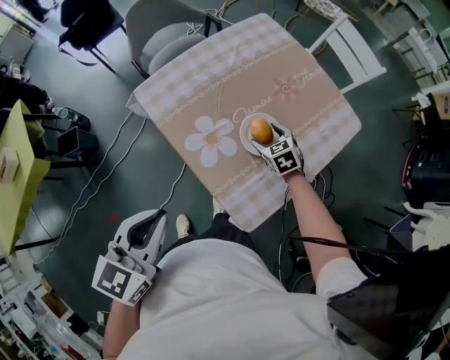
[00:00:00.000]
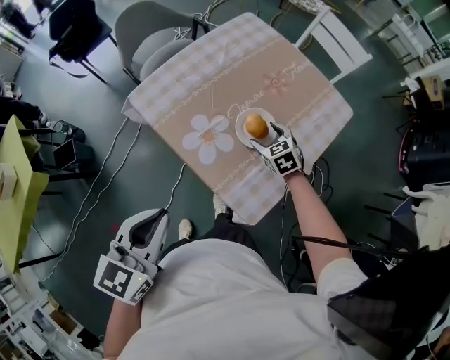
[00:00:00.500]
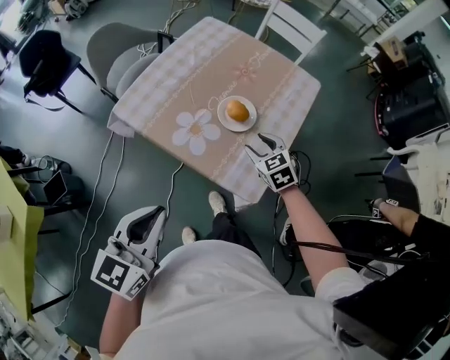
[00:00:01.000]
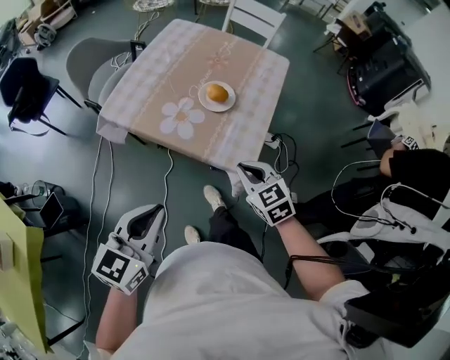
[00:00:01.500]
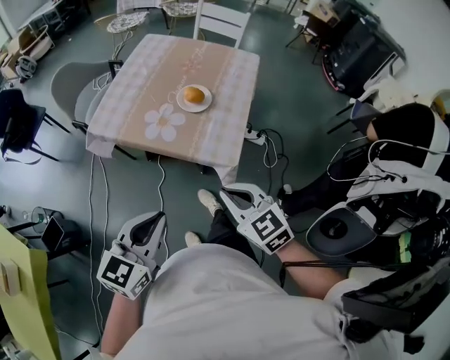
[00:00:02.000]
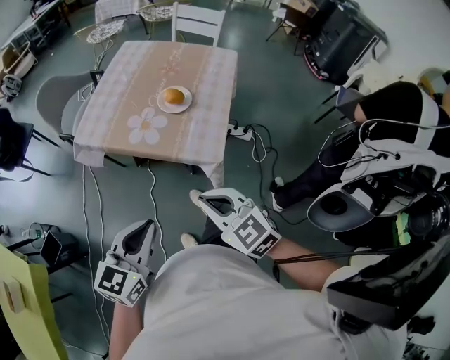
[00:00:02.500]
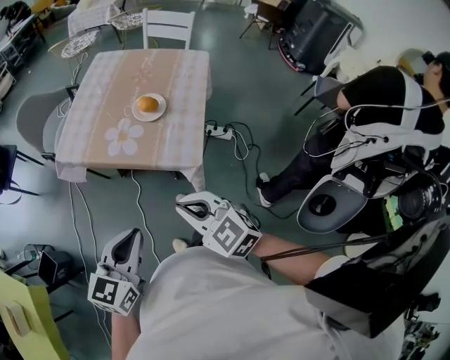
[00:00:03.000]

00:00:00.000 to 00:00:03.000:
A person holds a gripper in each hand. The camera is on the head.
00:00:00.000 to 00:00:01.500: The right gripper ends up about 35 cm from where it was, turns by about 30 degrees, and closes its fingers. Meanwhile the left gripper changes place by roughly 15 cm, and changes its angle by roughly 30 degrees.
00:00:01.500 to 00:00:03.000: The left gripper travels backward by roughly 5 cm, while the right gripper is displaced backward and upward by about 15 cm.

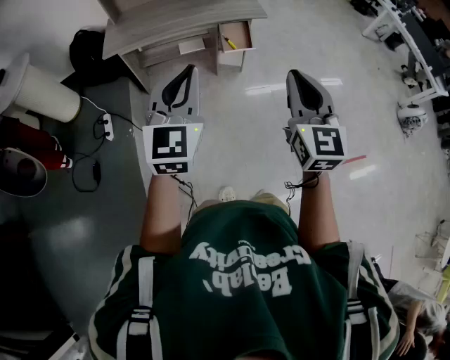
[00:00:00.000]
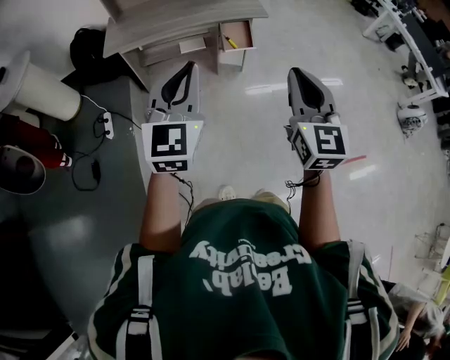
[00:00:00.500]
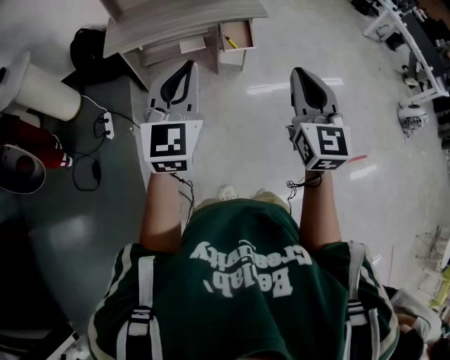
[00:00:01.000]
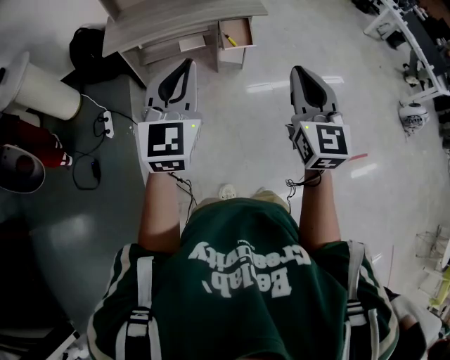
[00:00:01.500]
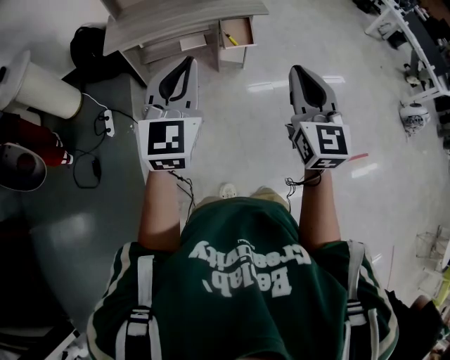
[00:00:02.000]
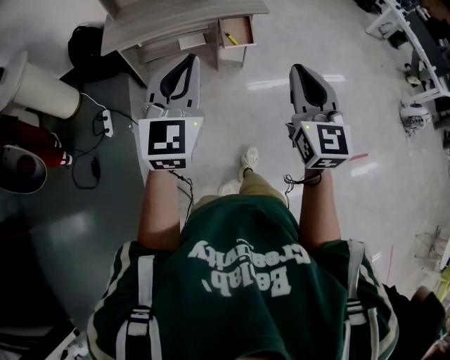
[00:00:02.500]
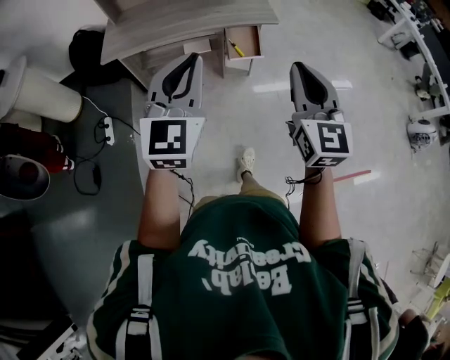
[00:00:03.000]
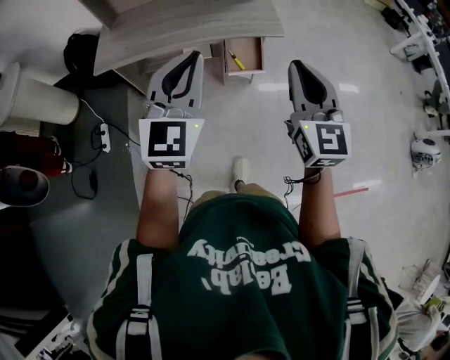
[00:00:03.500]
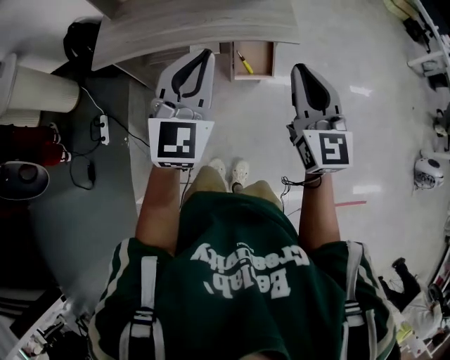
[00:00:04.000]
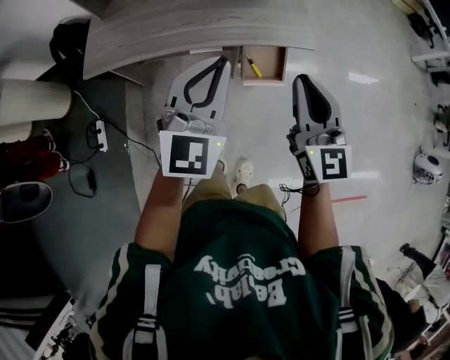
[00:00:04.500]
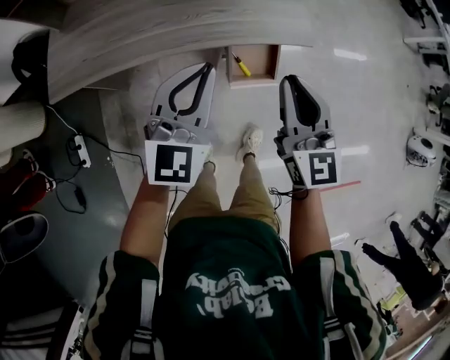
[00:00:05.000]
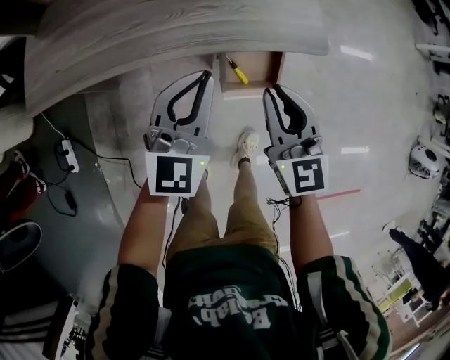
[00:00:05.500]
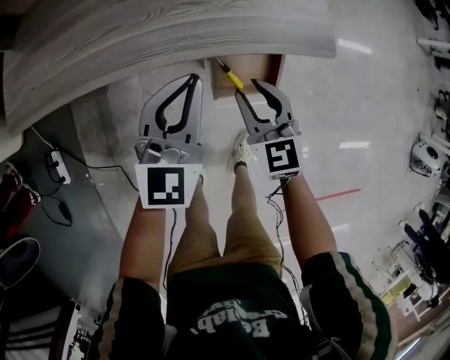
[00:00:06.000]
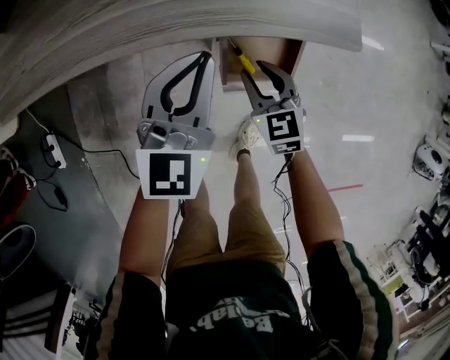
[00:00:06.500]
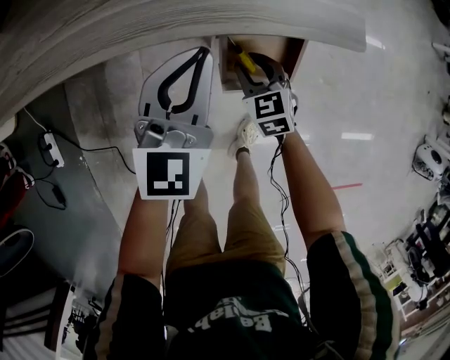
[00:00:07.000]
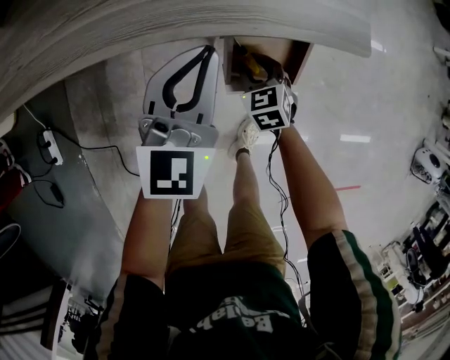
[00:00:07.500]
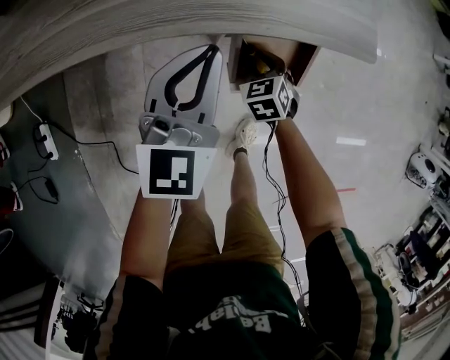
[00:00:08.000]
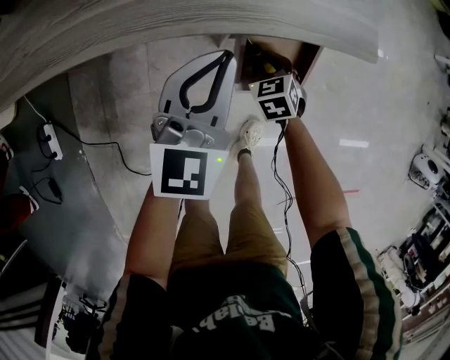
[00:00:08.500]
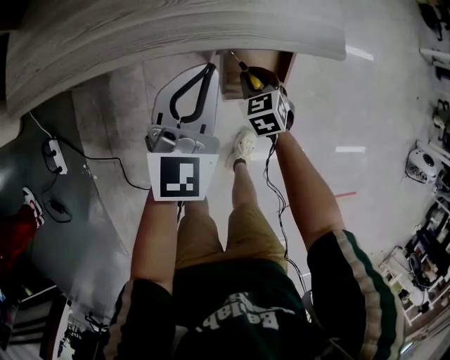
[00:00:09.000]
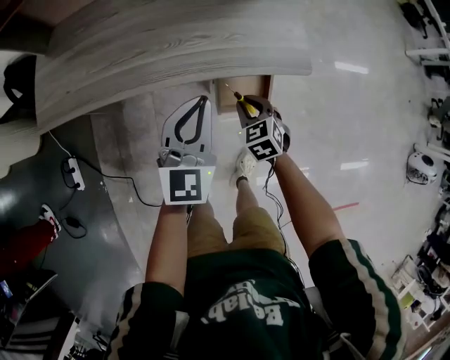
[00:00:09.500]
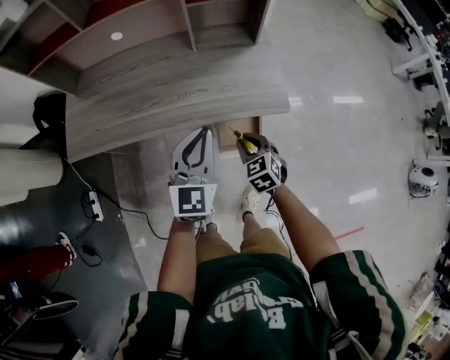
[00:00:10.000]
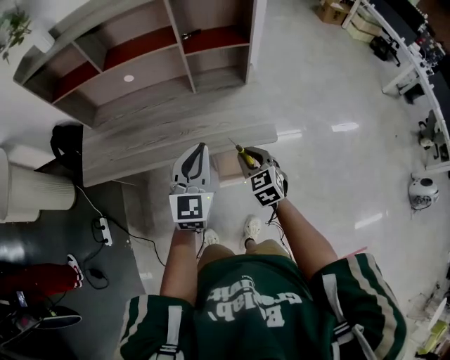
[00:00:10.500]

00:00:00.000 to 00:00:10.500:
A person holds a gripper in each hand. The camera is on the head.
00:00:00.000 to 00:00:02.000: Both grippers stay about where they are.
00:00:02.000 to 00:00:04.000: The pair of grippers is taken forward, approximately 50 cm.
00:00:04.000 to 00:00:06.500: The two grippers go approximately 60 cm downward and forward. The right gripper angles its fingers downward, by about 40 degrees, and opens.
00:00:06.500 to 00:00:08.500: The right gripper shifts about 10 cm downward.
00:00:08.500 to 00:00:10.500: Both grippers move upward, about 40 cm. The right gripper changes its angle by approximately 20 degrees.

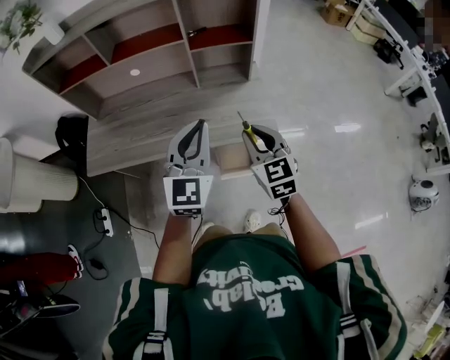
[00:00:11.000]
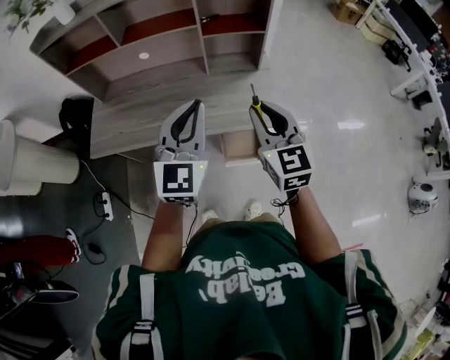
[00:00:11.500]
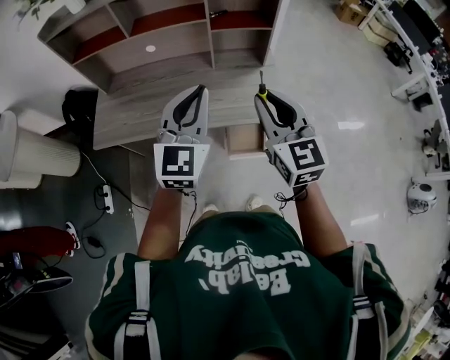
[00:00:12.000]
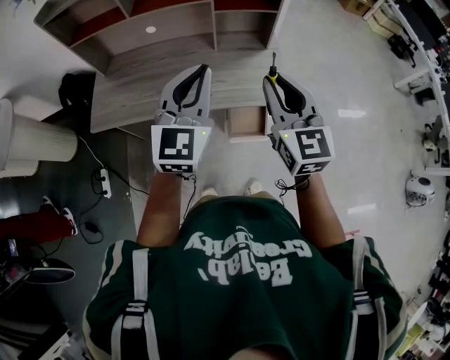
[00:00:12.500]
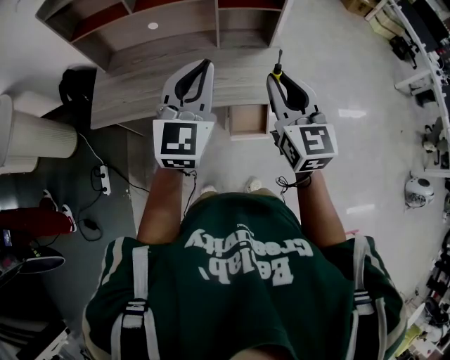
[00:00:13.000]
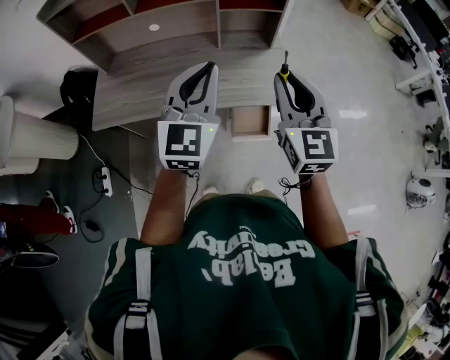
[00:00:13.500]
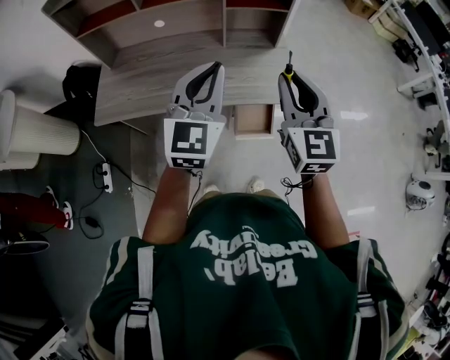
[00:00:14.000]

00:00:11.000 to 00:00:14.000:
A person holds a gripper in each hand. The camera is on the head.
00:00:11.000 to 00:00:12.500: The left gripper heads upward and to the left, covering roughly 10 cm. The right gripper moves upward, approximately 15 cm.
00:00:12.500 to 00:00:14.000: There are only small adjustments of the grippers.

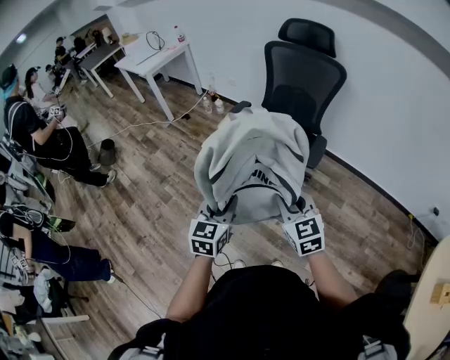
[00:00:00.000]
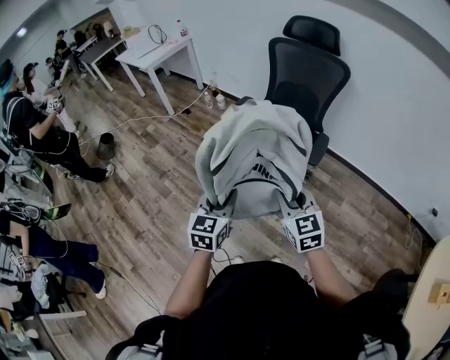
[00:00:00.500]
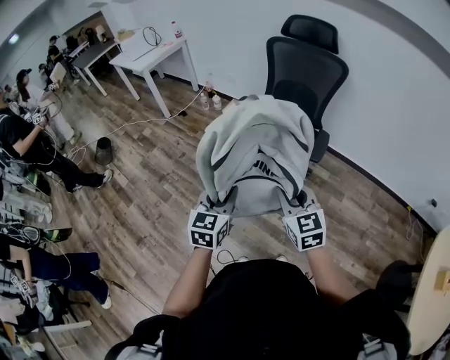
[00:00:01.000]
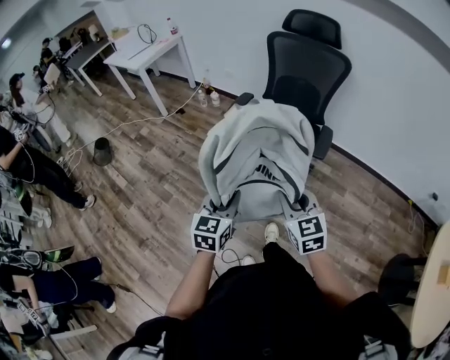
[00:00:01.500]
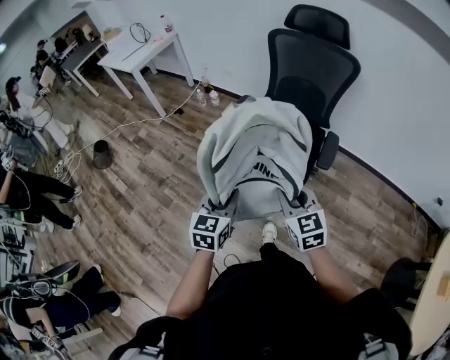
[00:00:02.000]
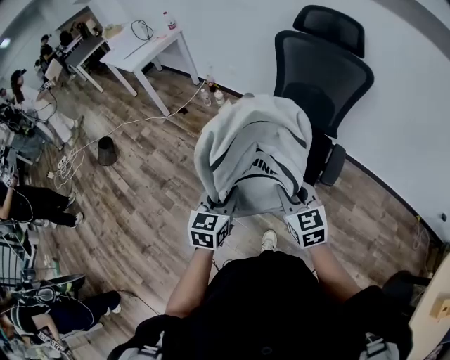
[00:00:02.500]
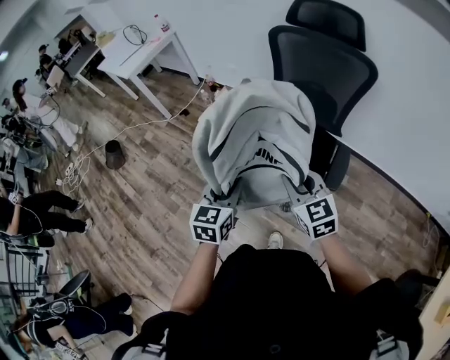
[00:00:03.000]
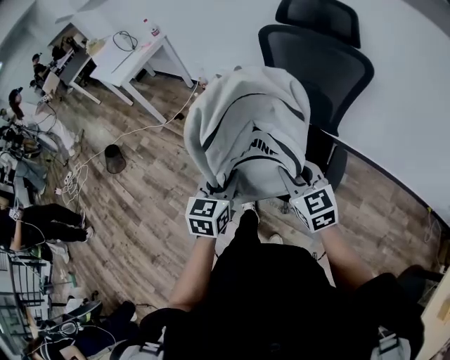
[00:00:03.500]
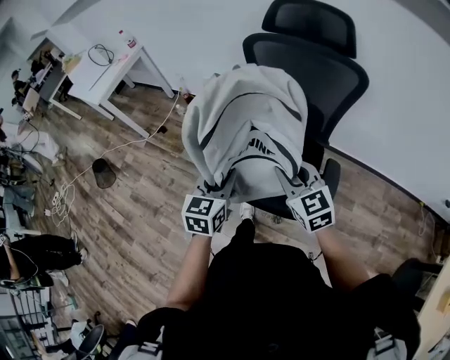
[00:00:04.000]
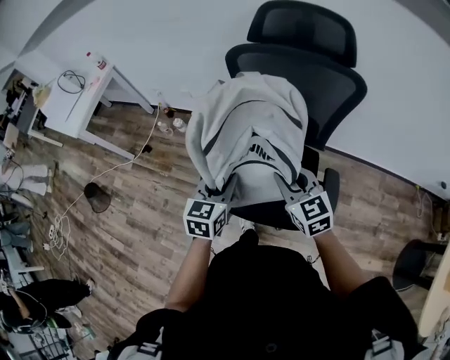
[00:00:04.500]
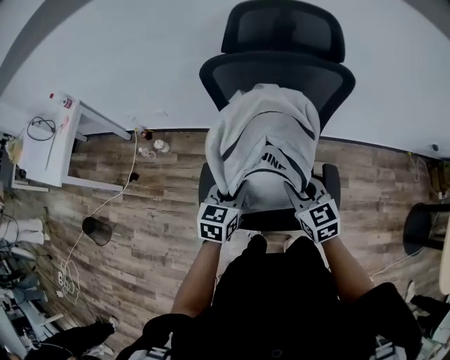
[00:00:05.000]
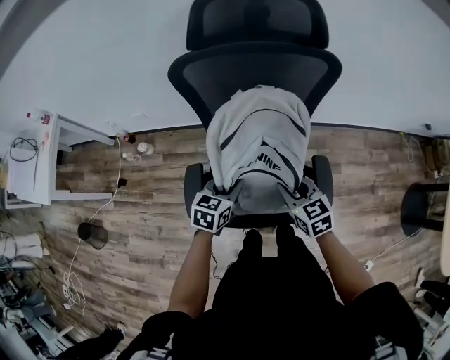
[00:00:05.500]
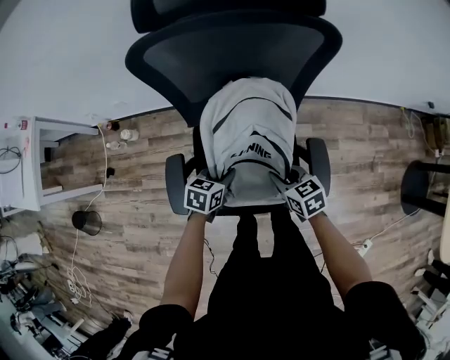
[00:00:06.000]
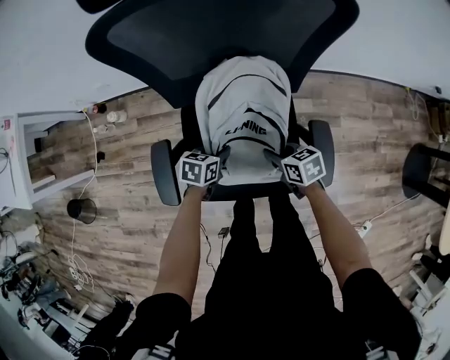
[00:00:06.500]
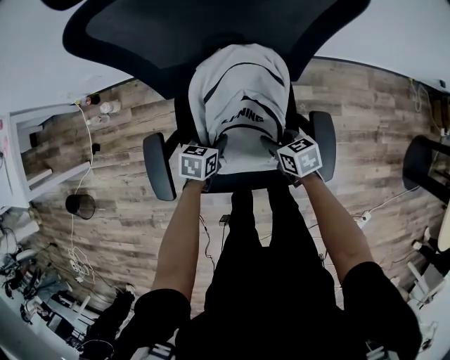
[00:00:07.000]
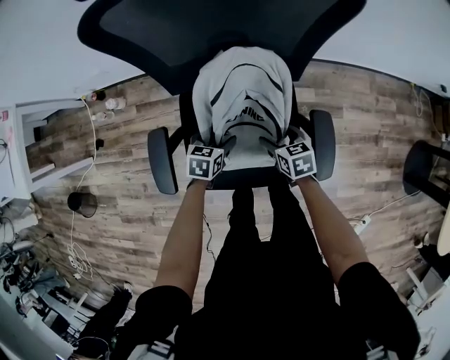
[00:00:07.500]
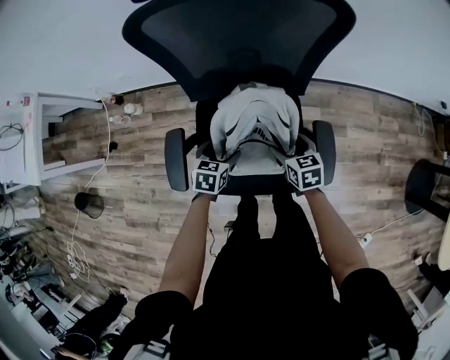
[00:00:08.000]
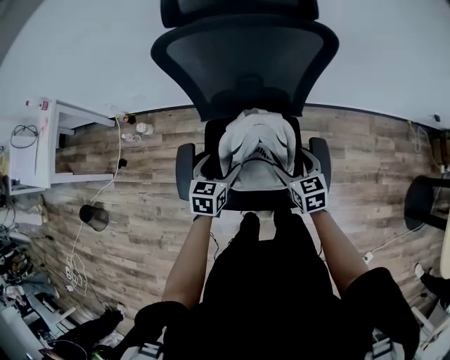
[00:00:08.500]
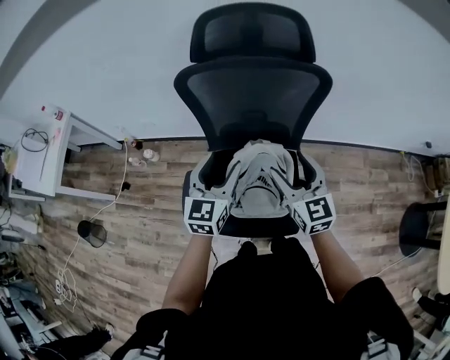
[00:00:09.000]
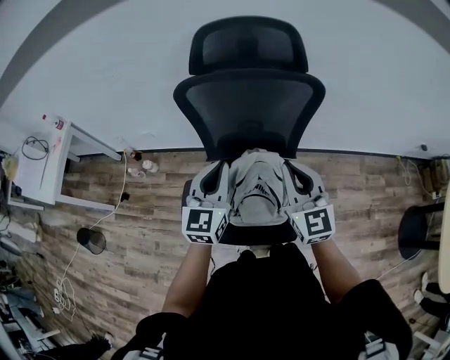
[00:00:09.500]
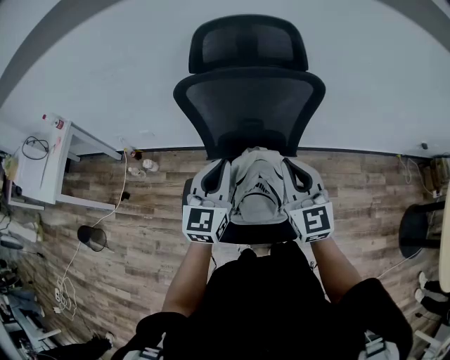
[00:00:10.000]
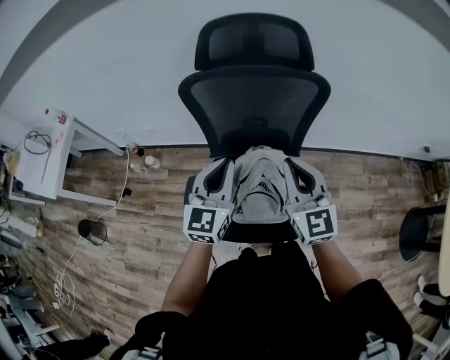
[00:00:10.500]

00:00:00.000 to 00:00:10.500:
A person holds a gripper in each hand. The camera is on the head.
00:00:00.000 to 00:00:02.000: The two grippers go approximately 15 cm forward and to the left.
00:00:02.000 to 00:00:04.000: Both grippers move forward, some 30 cm.
00:00:04.000 to 00:00:06.500: The two grippers go about 35 cm downward. The right gripper twists approximately 50 degrees clockwise, seen from behind. The left gripper rotates some 50 degrees.
00:00:06.500 to 00:00:08.500: The two grippers go some 15 cm upward. The right gripper changes its angle by approximately 30 degrees, and opens; the left gripper rotates some 30 degrees, and opens its fingers.
00:00:08.500 to 00:00:10.500: The grippers both shift upward by approximately 25 cm. The left gripper angles its fingers upward, by about 30 degrees, and closes its fingers, while the right gripper angles its fingers upward, by some 30 degrees, and closes its fingers.
